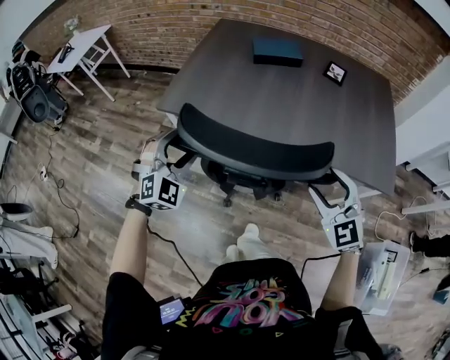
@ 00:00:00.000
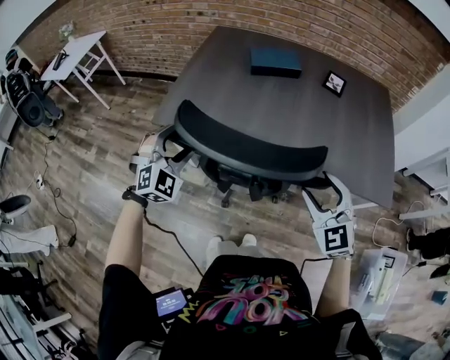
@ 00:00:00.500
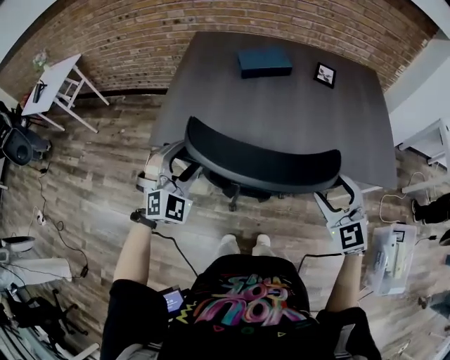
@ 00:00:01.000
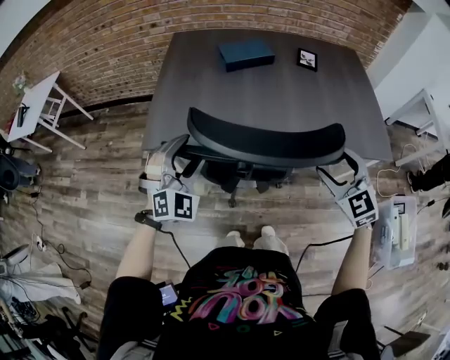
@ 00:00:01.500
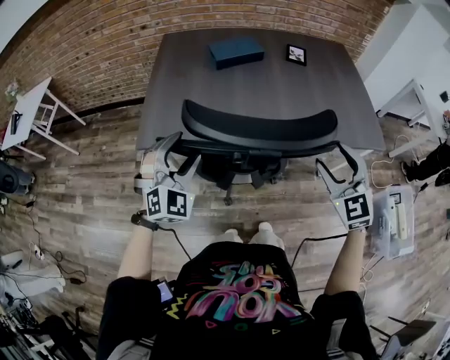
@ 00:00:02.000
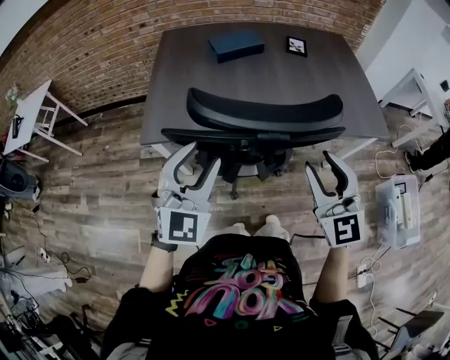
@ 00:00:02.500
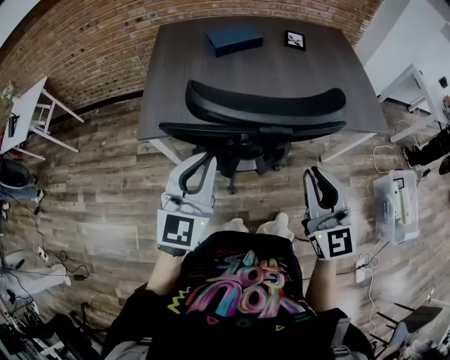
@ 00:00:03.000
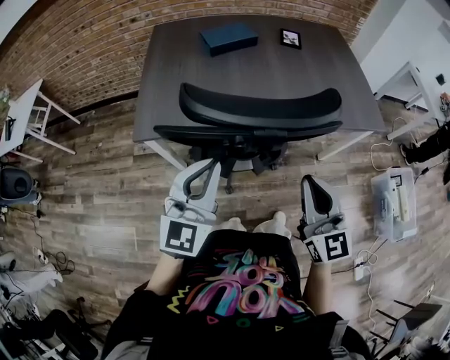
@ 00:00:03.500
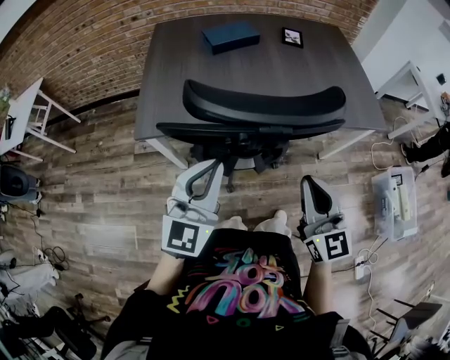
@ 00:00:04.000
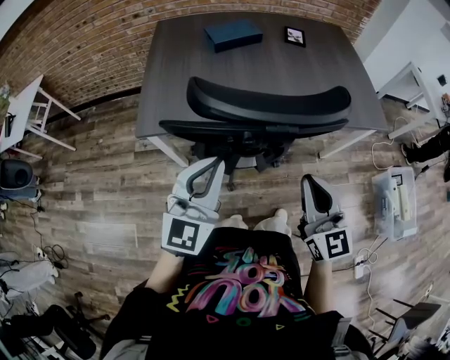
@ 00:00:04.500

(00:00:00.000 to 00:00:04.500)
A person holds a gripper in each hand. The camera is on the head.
00:00:00.000 - 00:00:02.000: The left gripper goes roughly 5 cm forward, while the right gripper shifts by roughly 5 cm, and swivels some 20 degrees.
00:00:02.000 - 00:00:04.500: The right gripper heads backward and to the left, covering some 15 cm, changes its angle by about 30 degrees, and closes. Meanwhile the left gripper shifts some 15 cm backward, to the right and upward, rolls counterclockwise, seen from behind, by roughly 40 degrees, and closes its fingers.

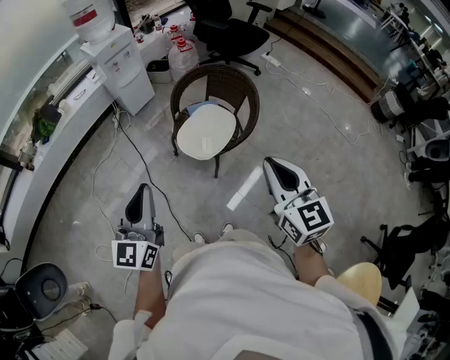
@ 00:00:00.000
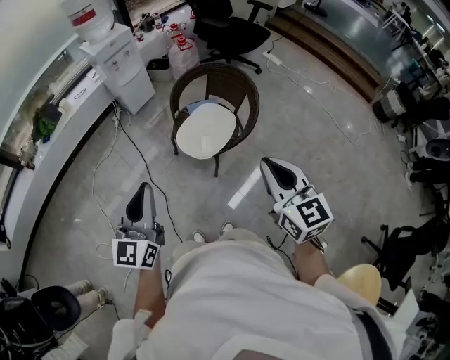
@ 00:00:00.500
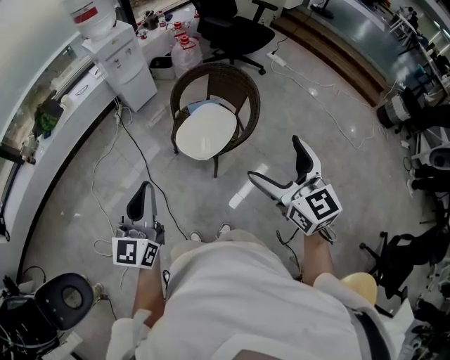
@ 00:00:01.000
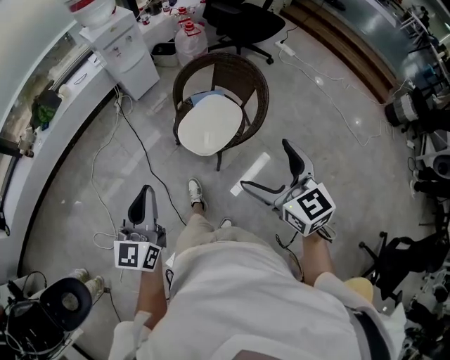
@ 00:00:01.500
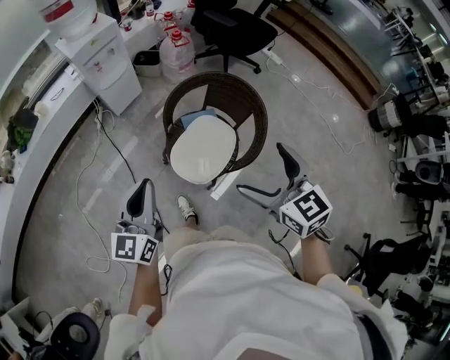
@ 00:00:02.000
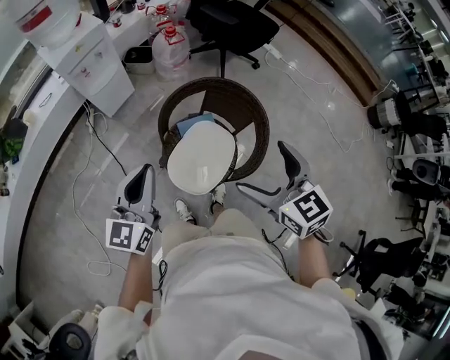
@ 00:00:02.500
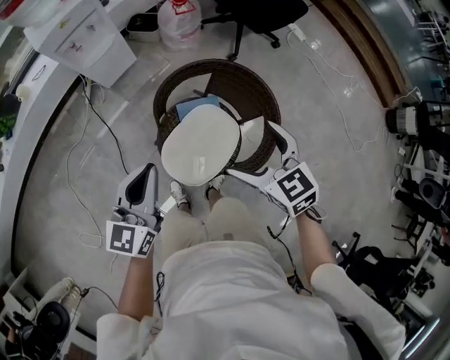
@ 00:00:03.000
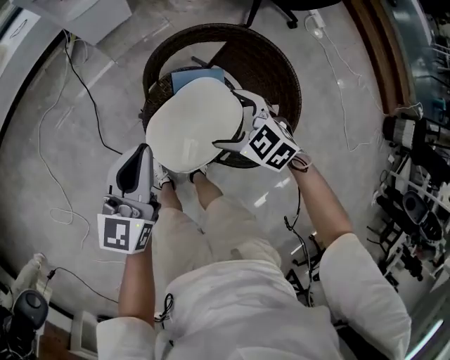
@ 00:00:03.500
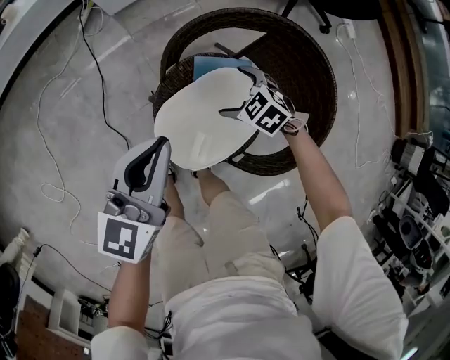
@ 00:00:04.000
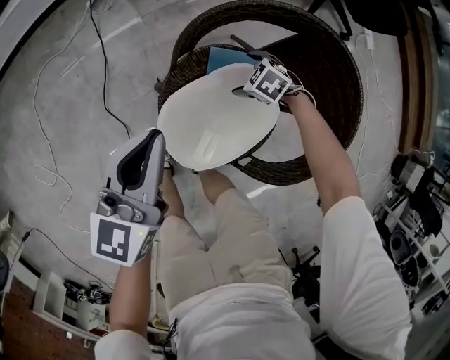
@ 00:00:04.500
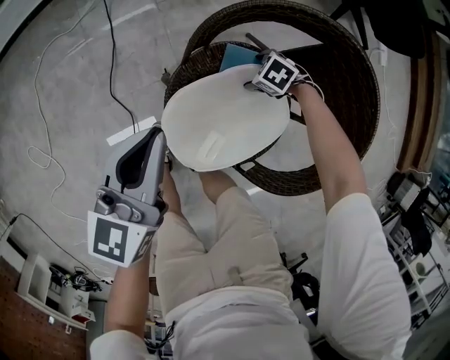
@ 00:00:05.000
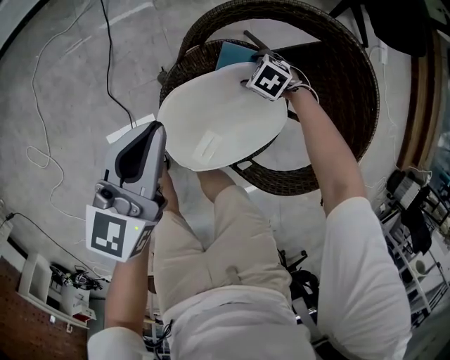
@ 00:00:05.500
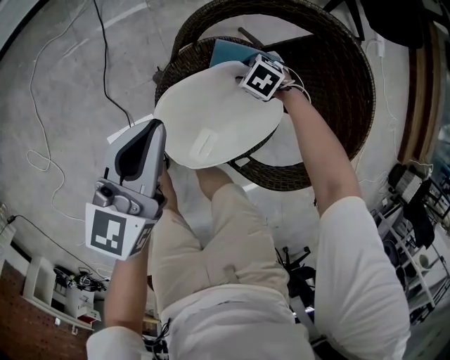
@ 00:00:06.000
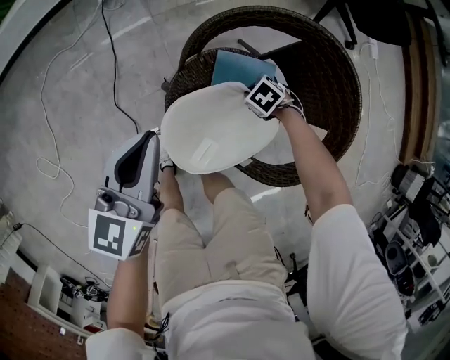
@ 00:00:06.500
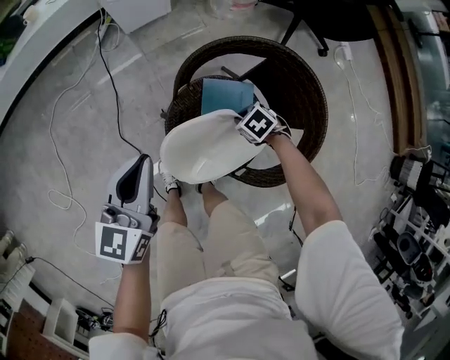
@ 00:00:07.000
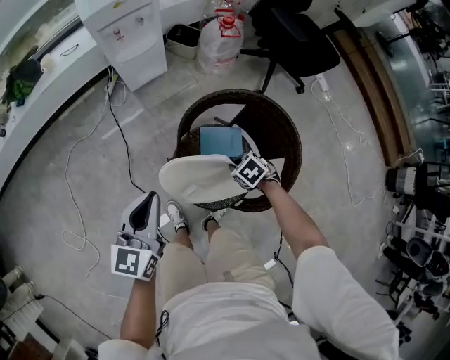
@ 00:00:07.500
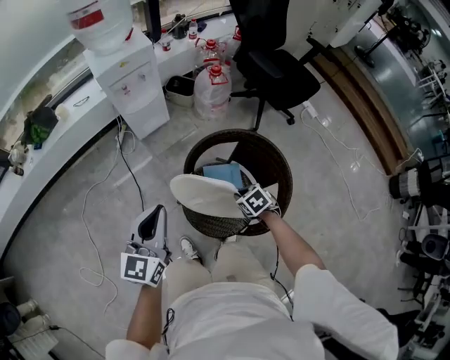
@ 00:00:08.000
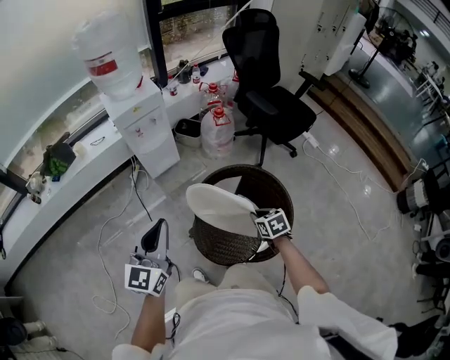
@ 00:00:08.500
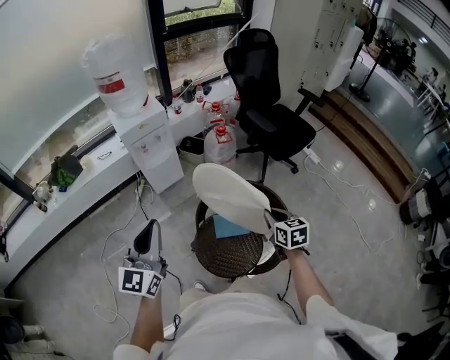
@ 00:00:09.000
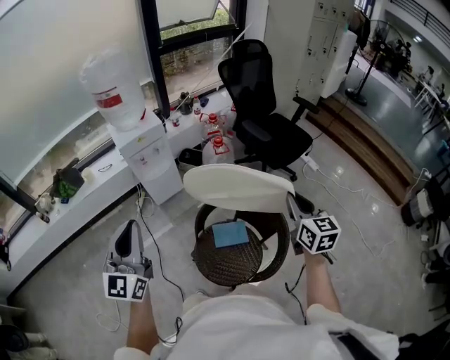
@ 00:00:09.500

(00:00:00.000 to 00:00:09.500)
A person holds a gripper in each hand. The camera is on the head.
00:00:00.000 - 00:00:02.000: Both grippers travel together forward, approximately 25 cm. The right gripper opens its fingers.
00:00:02.000 - 00:00:04.000: The right gripper heads downward, covering approximately 50 cm, and angles its fingers downward, by roughly 40 degrees. Meanwhile the left gripper changes place by some 30 cm.
00:00:04.000 - 00:00:05.500: The left gripper is displaced downward by about 10 cm, while the right gripper is displaced downward by some 15 cm, changes its angle by some 20 degrees, and closes.
00:00:05.500 - 00:00:07.500: Both grippers move upward, roughly 25 cm. The right gripper changes its angle by roughly 30 degrees, and closes up.
00:00:07.500 - 00:00:09.500: The right gripper goes about 50 cm upward, and tilts its fingers roughly 60 degrees upward, while the left gripper travels upward by approximately 30 cm, and swivels roughly 30 degrees.

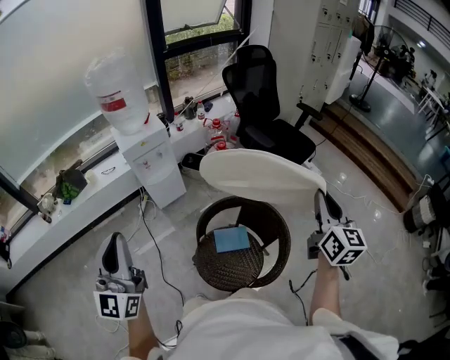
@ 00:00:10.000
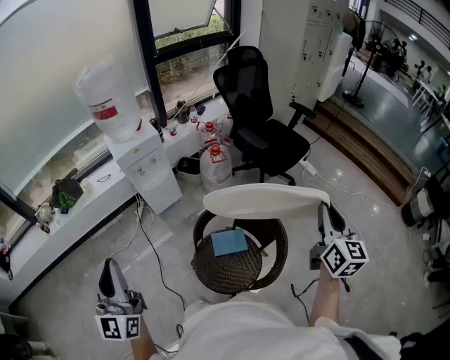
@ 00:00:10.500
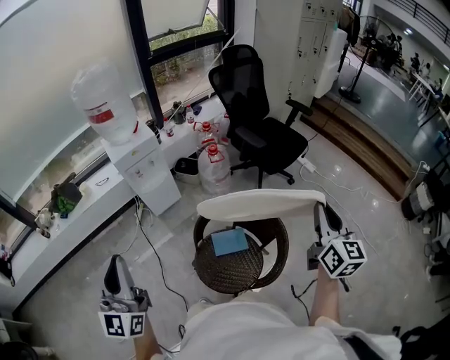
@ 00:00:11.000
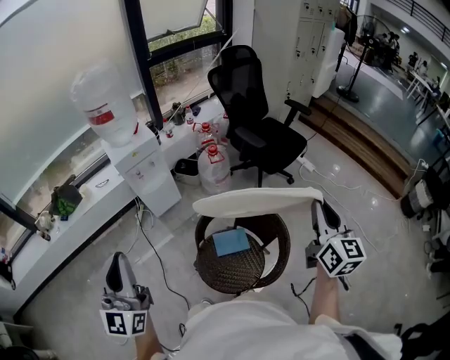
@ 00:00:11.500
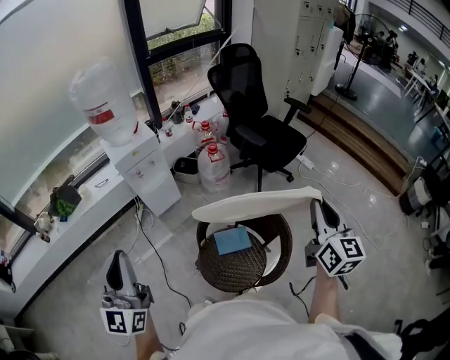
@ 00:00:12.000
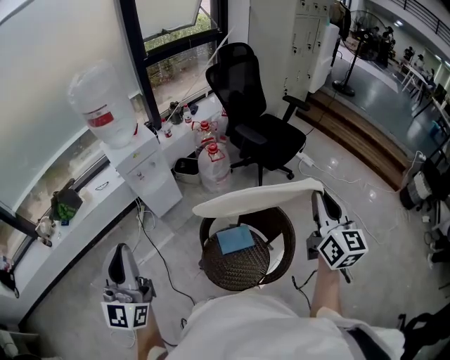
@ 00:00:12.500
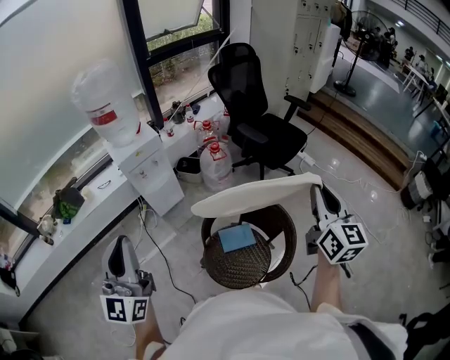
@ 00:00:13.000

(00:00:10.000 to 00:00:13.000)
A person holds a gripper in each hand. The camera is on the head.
00:00:10.000 - 00:00:11.500: The grippers stay close to where they were, moving slightly.
00:00:11.500 - 00:00:13.000: The right gripper moves about 5 cm.

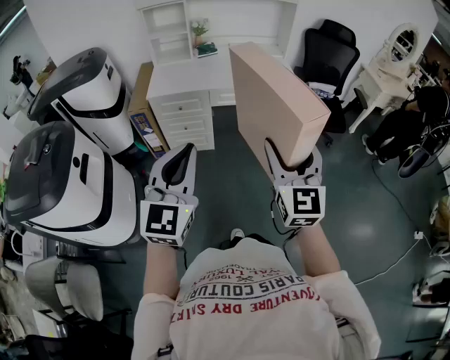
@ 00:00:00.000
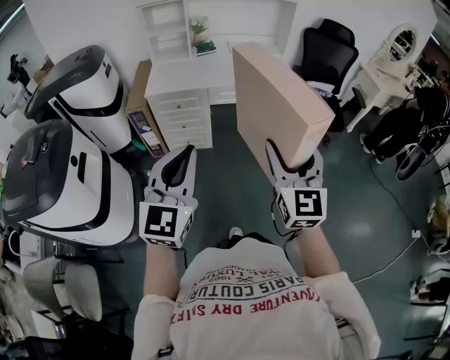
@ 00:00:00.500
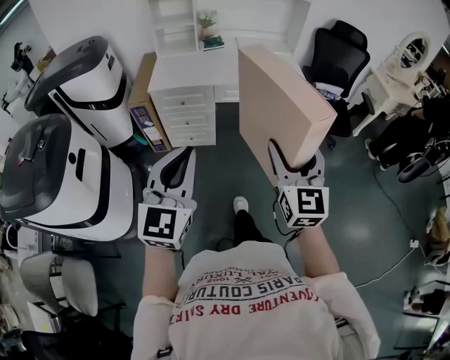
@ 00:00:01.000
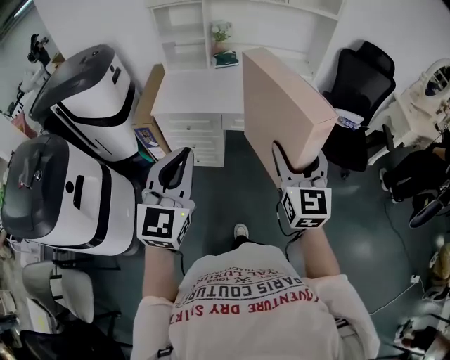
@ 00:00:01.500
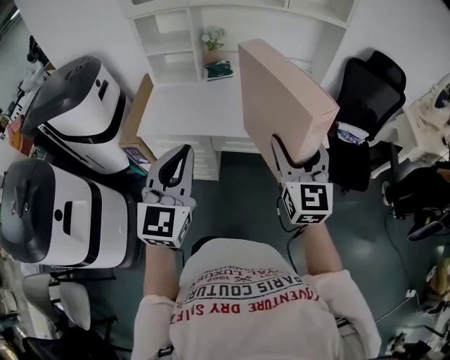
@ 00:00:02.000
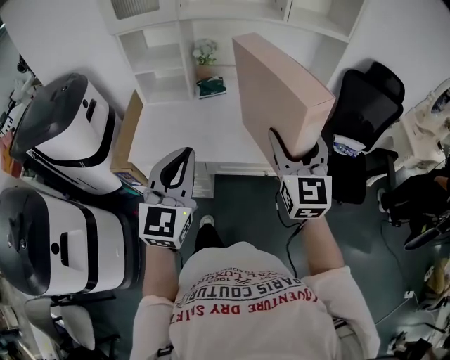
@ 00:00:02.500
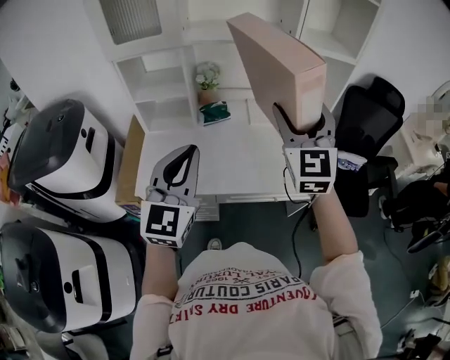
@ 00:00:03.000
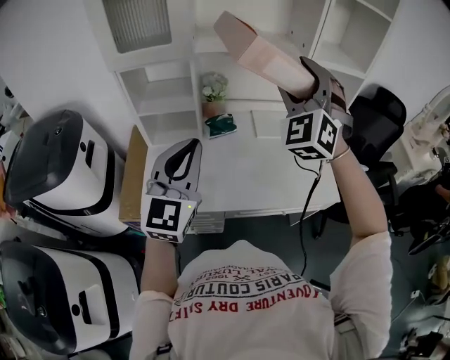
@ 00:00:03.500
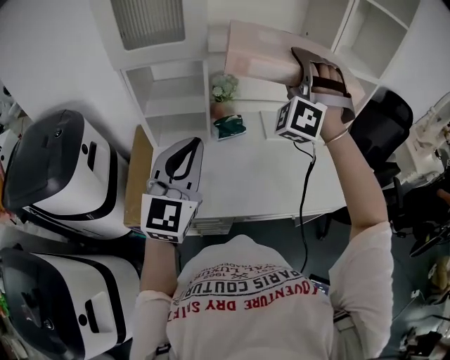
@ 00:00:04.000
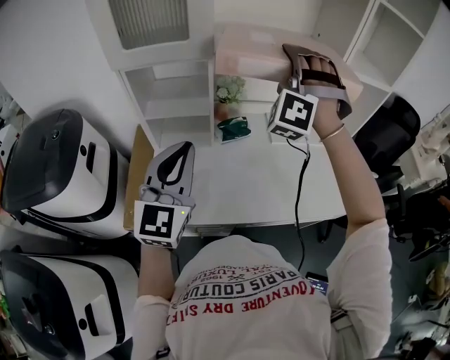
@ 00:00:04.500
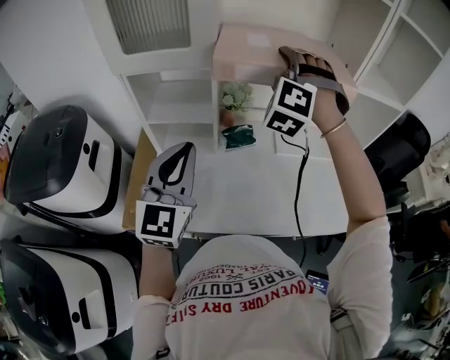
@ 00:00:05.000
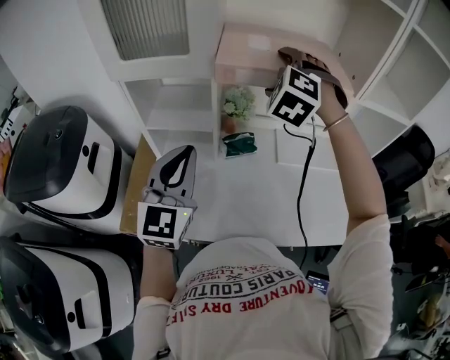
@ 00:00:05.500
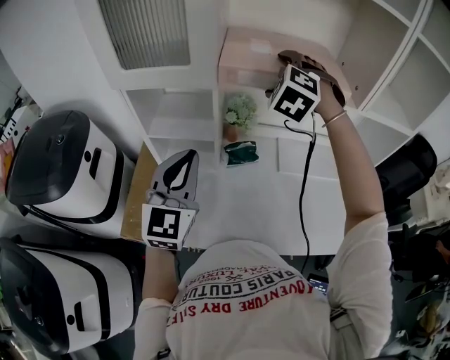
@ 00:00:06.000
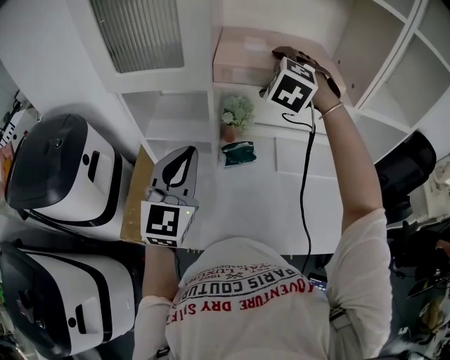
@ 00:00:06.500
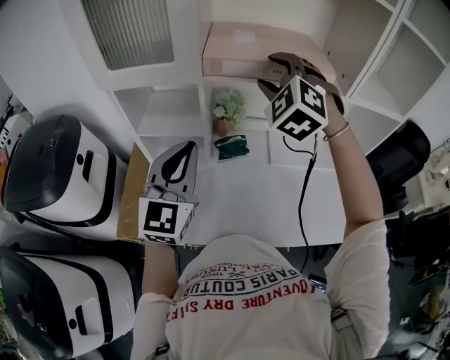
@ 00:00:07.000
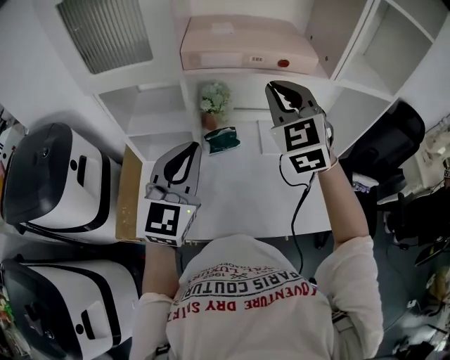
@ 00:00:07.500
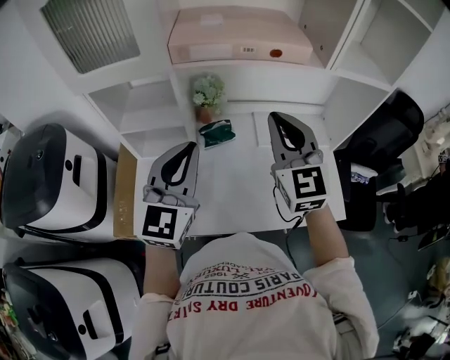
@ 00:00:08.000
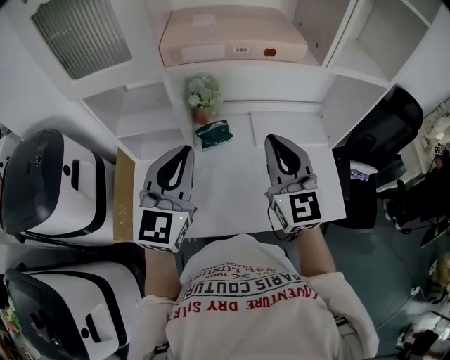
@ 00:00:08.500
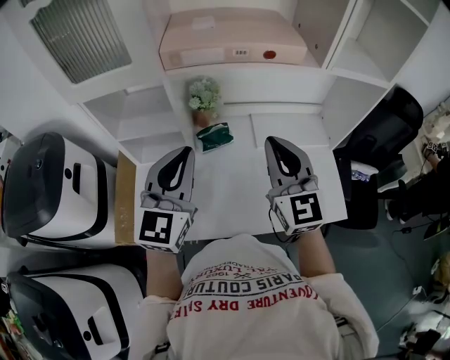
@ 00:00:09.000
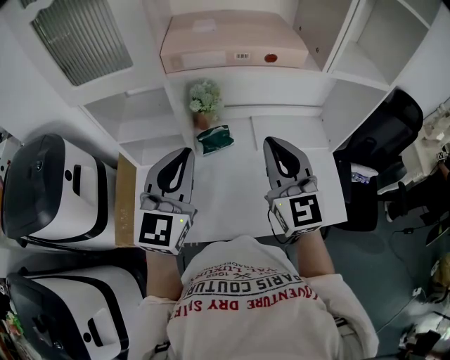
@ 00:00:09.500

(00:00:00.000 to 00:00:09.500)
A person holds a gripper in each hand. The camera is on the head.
00:00:00.000 - 00:00:02.000: Both grippers travel together forward, about 40 cm.
00:00:02.000 - 00:00:04.000: The grippers both shift forward and to the left by about 40 cm. The right gripper rotates around the line of its fingers by about 80 degrees, counterclockwise from behind.
00:00:04.000 - 00:00:05.500: The right gripper moves forward, to the left and downward, roughly 15 cm, and tilts its fingers approximately 30 degrees downward. Meanwhile the left gripper moves forward, some 10 cm.
00:00:05.500 - 00:00:07.500: The left gripper heads to the right, covering approximately 5 cm; the right gripper goes some 10 cm backward and to the right, rotates approximately 40 degrees, and closes its fingers.
00:00:07.500 - 00:00:09.500: The right gripper moves backward and downward, roughly 10 cm, and turns by roughly 30 degrees.
